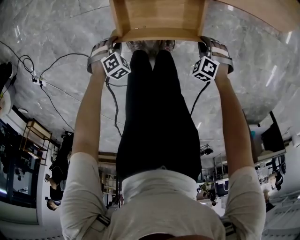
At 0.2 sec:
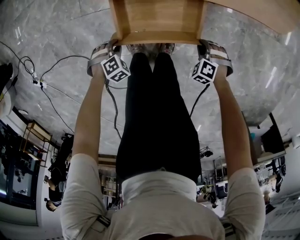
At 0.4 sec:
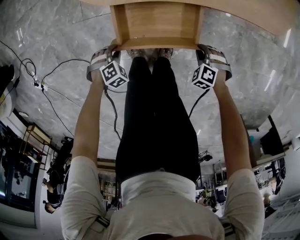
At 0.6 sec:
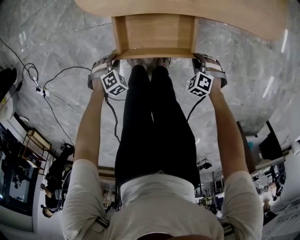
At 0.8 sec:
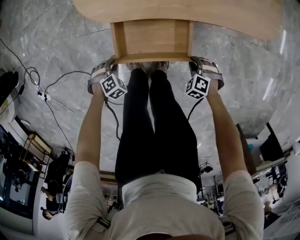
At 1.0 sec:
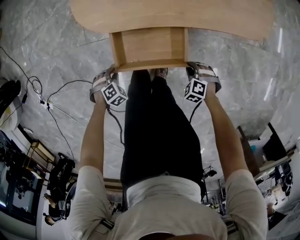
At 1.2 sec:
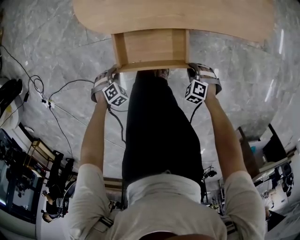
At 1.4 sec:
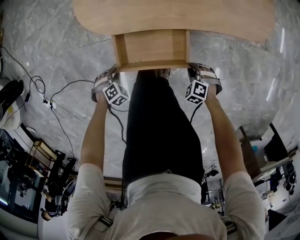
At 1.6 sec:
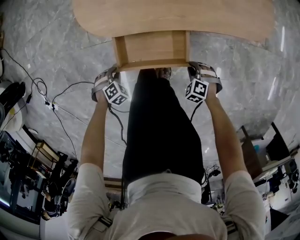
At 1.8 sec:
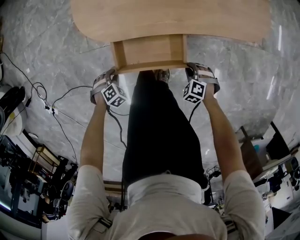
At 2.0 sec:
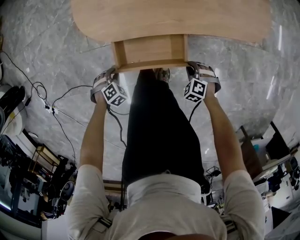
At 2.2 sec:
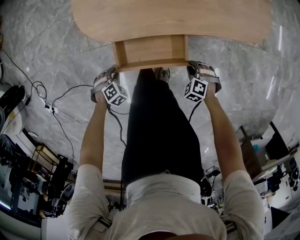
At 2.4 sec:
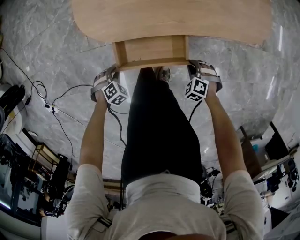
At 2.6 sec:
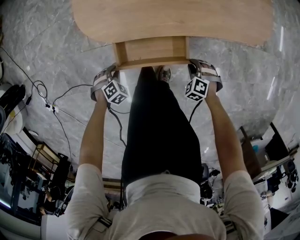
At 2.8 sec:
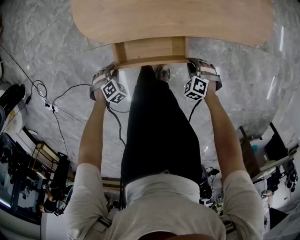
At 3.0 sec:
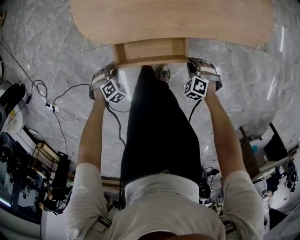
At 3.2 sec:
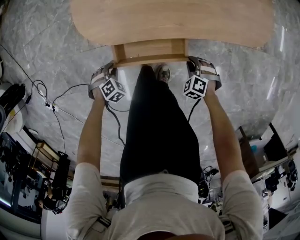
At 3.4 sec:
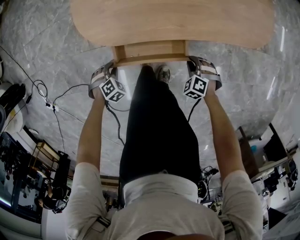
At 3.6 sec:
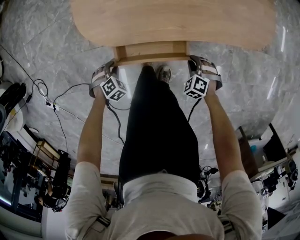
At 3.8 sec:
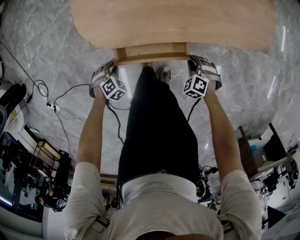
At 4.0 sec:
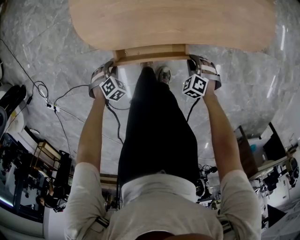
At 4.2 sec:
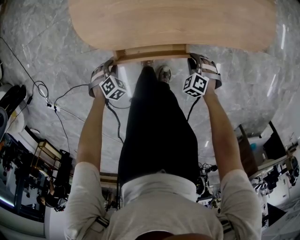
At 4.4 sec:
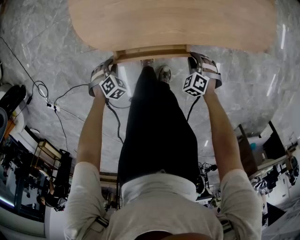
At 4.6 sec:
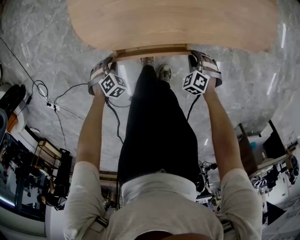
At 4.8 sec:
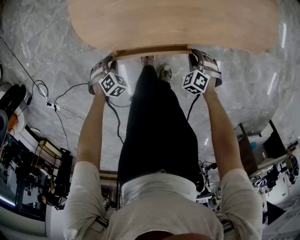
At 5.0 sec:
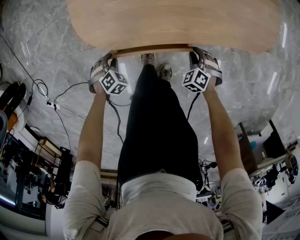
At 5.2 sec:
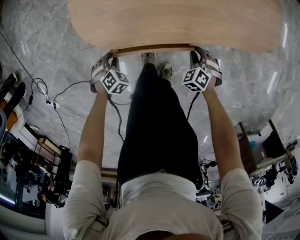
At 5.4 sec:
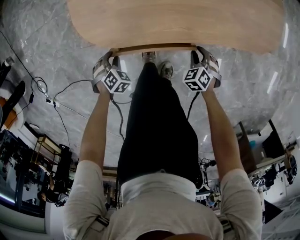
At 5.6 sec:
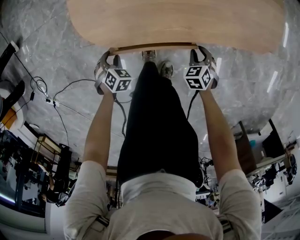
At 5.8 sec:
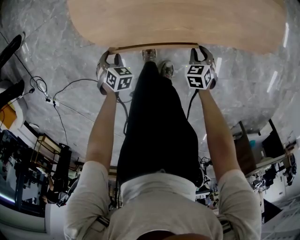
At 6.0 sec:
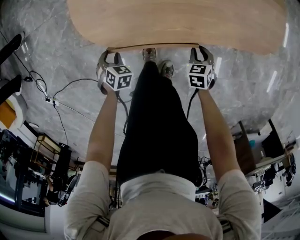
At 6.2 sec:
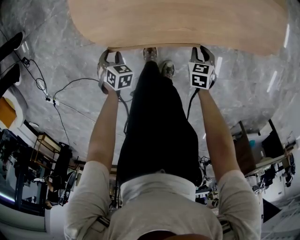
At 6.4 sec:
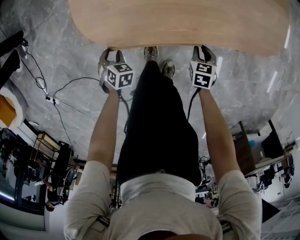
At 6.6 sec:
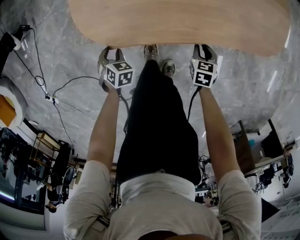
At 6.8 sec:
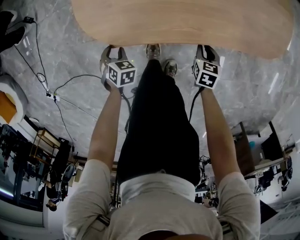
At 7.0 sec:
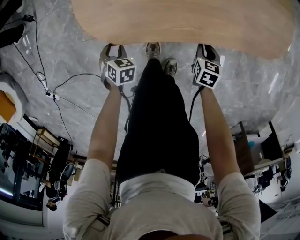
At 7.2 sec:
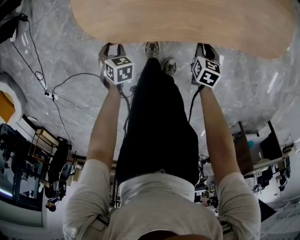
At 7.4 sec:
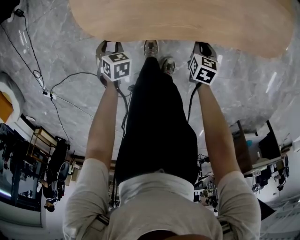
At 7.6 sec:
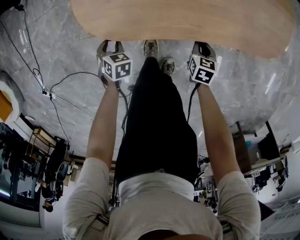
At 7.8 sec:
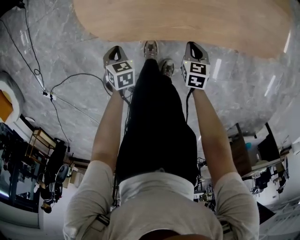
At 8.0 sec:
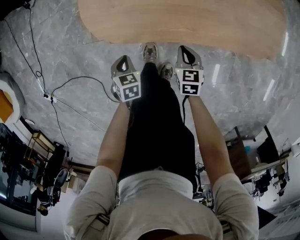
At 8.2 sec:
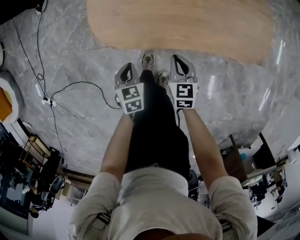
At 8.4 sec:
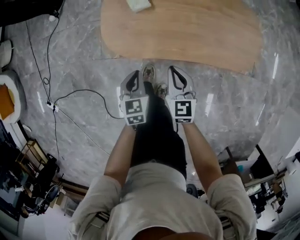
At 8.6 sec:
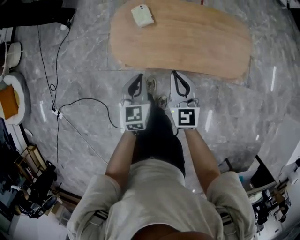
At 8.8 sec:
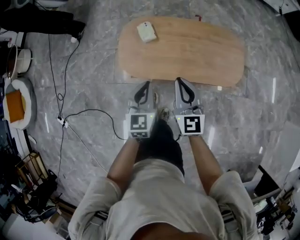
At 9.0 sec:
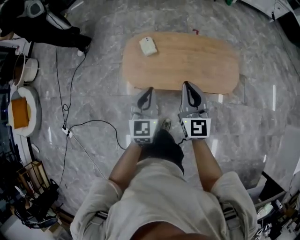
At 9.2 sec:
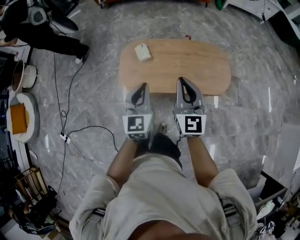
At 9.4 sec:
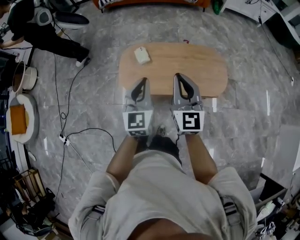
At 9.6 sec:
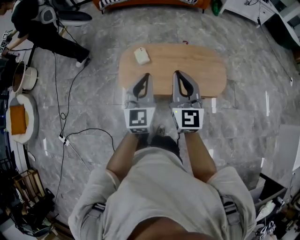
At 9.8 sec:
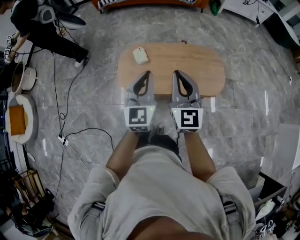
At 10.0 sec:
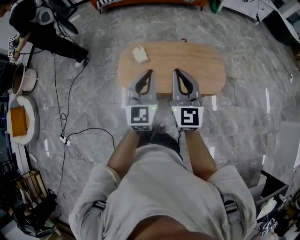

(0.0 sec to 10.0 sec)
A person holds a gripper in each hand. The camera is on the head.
0.0 sec - 1.4 sec: Both grippers travel together upward, approximately 5 cm.
1.4 sec - 2.8 sec: The right gripper shifts by roughly 5 cm; the left gripper moves roughly 5 cm.
2.8 sec - 4.2 sec: The right gripper shifts by about 5 cm; the left gripper moves about 5 cm.
4.2 sec - 5.8 sec: The right gripper twists some 40 degrees clockwise, seen from behind. The left gripper swivels roughly 30 degrees.
5.8 sec - 7.2 sec: The right gripper changes its angle by approximately 30 degrees.
7.2 sec - 8.6 sec: Both grippers travel together upward, approximately 40 cm. The right gripper tilts its fingers some 40 degrees upward, while the left gripper tilts its fingers roughly 40 degrees upward, and closes.
8.6 sec - 10.0 sec: The grippers both shift upward by roughly 30 cm. The left gripper changes its angle by roughly 30 degrees.

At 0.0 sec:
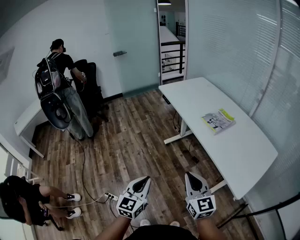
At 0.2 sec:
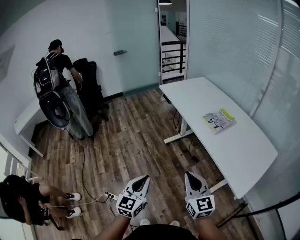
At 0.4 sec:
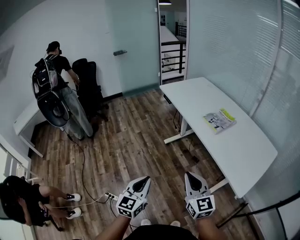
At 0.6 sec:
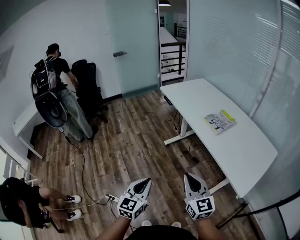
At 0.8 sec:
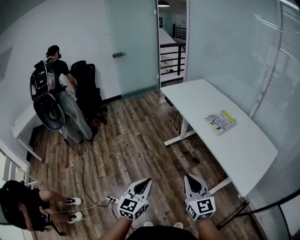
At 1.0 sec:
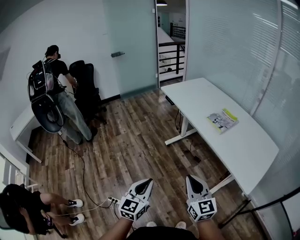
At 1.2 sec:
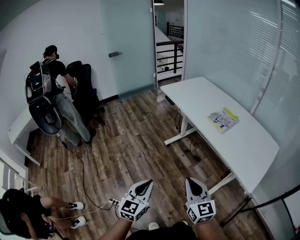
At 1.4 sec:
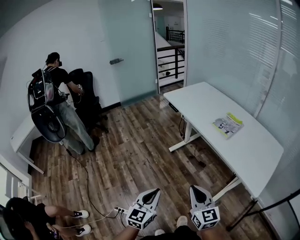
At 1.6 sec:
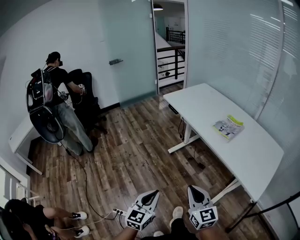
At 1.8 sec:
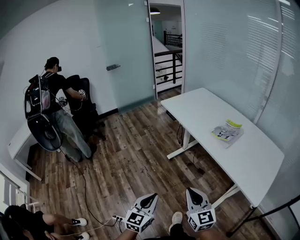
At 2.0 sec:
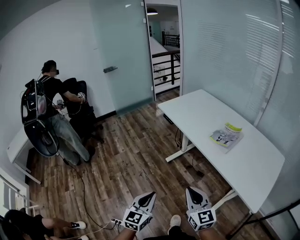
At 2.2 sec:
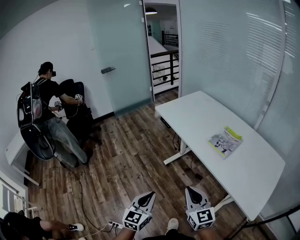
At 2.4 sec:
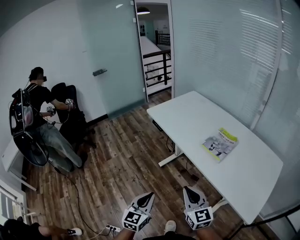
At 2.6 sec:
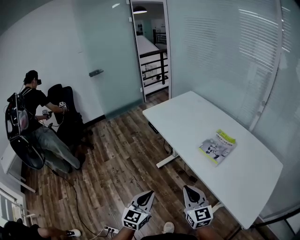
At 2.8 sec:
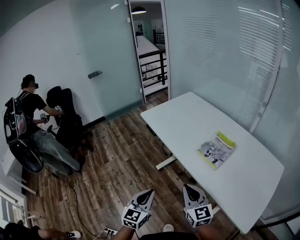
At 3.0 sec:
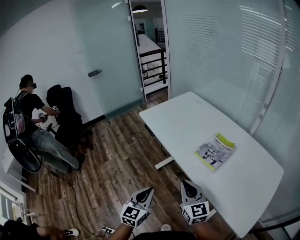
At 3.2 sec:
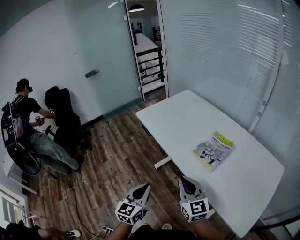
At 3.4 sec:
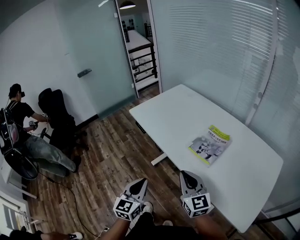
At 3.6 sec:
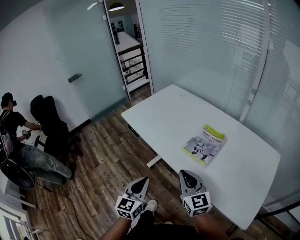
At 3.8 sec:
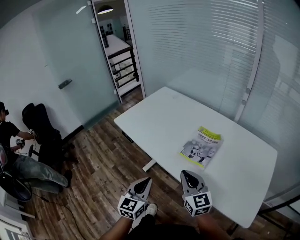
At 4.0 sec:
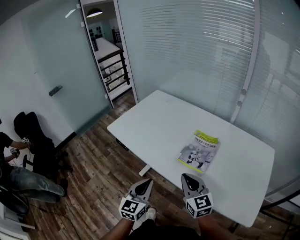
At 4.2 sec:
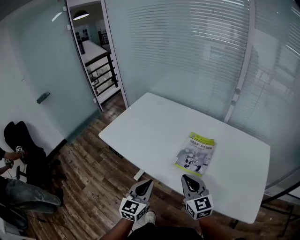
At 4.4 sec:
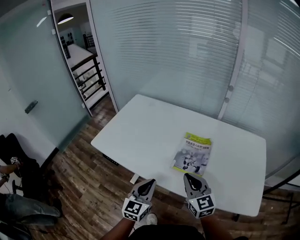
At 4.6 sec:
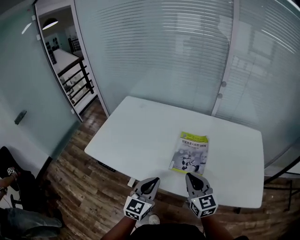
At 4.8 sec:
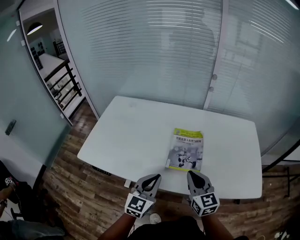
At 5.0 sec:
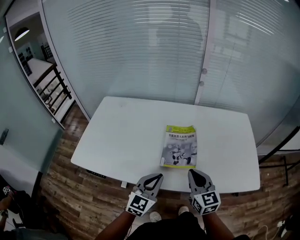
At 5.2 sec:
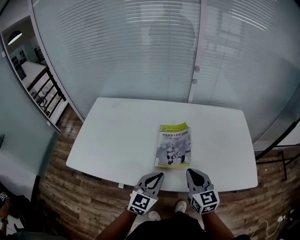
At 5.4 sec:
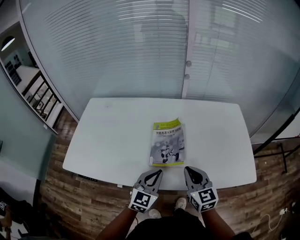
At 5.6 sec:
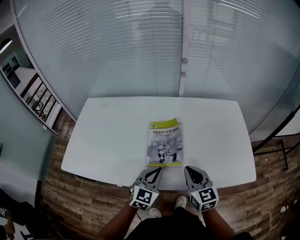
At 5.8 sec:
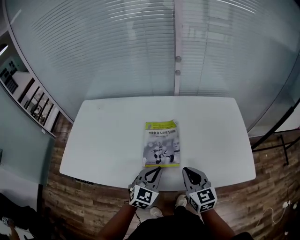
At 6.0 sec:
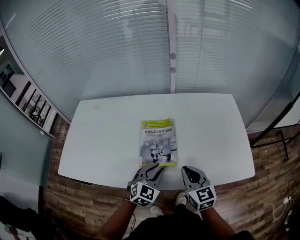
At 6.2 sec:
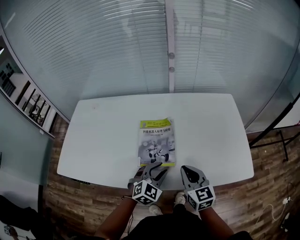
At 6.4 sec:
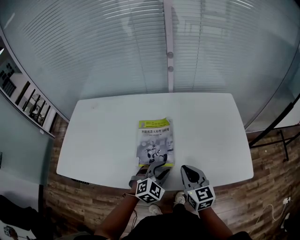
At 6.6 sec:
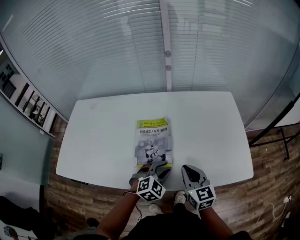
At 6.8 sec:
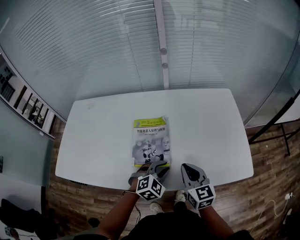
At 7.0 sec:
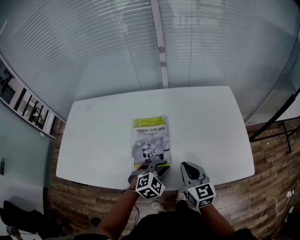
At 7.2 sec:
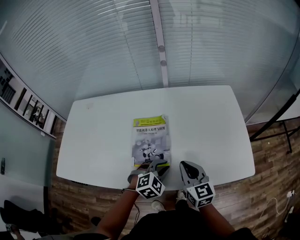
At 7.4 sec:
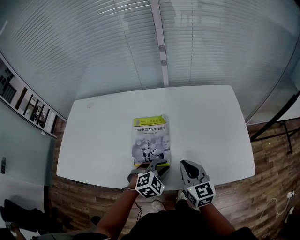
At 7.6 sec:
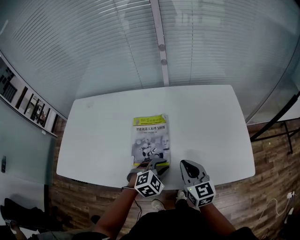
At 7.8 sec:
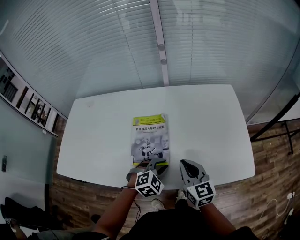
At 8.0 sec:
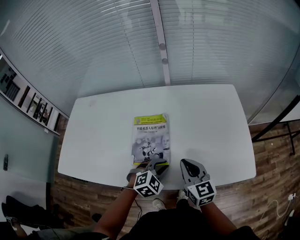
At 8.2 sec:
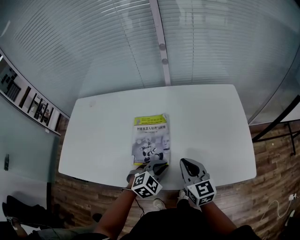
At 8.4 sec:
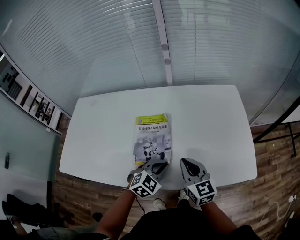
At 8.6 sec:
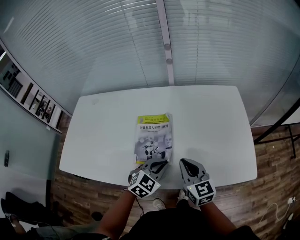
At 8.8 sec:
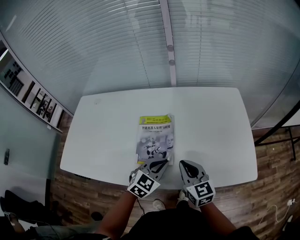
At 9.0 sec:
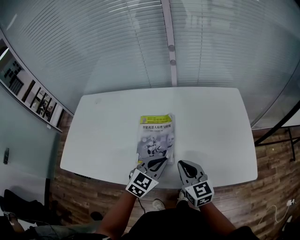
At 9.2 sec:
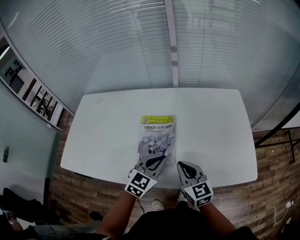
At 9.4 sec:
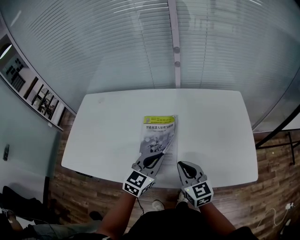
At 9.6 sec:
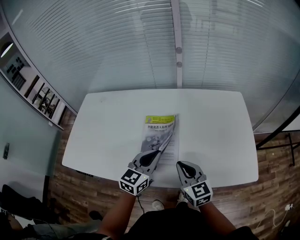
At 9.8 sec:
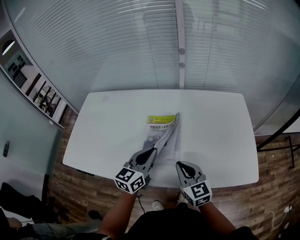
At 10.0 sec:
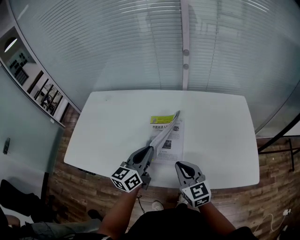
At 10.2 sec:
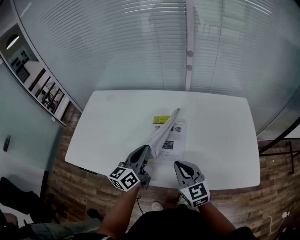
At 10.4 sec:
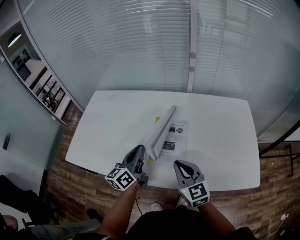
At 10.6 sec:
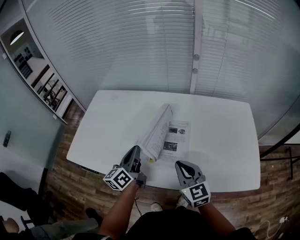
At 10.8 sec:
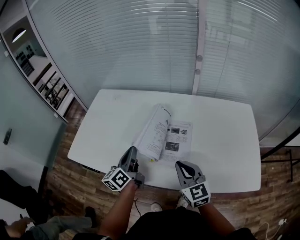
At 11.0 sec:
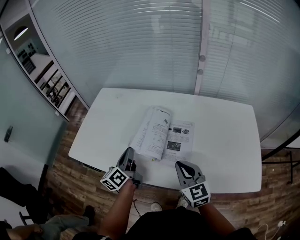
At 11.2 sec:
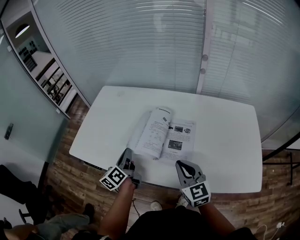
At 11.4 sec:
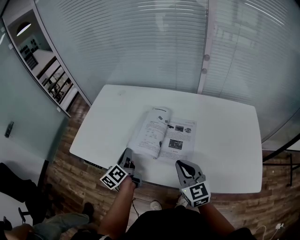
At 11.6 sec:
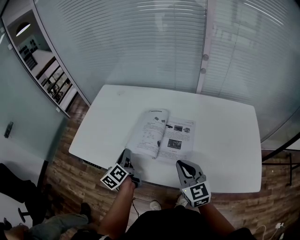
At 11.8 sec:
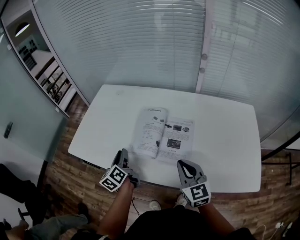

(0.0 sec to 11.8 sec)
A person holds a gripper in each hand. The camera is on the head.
0.0 sec - 1.4 sec: Both grippers move to the left, roughly 10 cm.
1.4 sec - 3.0 sec: Both grippers move forward, approximately 25 cm.
3.0 sec - 4.4 sec: The right gripper shifts by some 15 cm, and changes its angle by some 30 degrees. The left gripper changes place by about 25 cm, and rotates some 30 degrees.
4.4 sec - 6.0 sec: The left gripper changes place by about 20 cm, changes its angle by some 50 degrees, and opens; the right gripper ends up roughly 10 cm from where it was, and rotates approximately 30 degrees.
6.0 sec - 7.4 sec: The left gripper is displaced to the right by roughly 5 cm, and rotates roughly 30 degrees.
7.4 sec - 8.8 sec: The left gripper ends up approximately 5 cm from where it was, changes its angle by roughly 30 degrees, and closes.
8.8 sec - 10.4 sec: The right gripper heads to the left, covering some 10 cm. The left gripper goes roughly 20 cm to the left, and tilts its fingers roughly 30 degrees upward.
10.4 sec - 11.8 sec: The left gripper goes about 15 cm to the left and downward, changes its angle by about 30 degrees, and opens up.

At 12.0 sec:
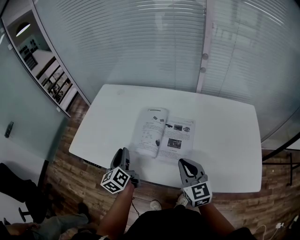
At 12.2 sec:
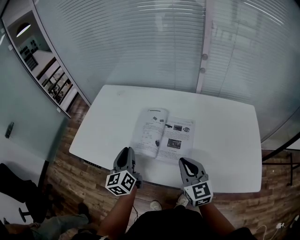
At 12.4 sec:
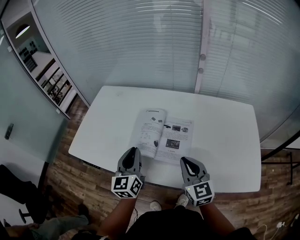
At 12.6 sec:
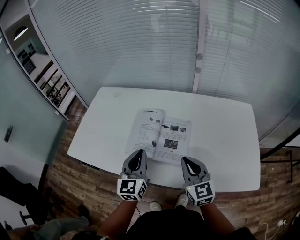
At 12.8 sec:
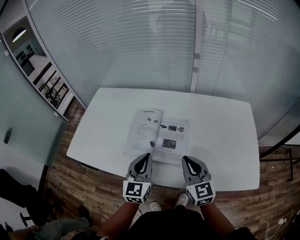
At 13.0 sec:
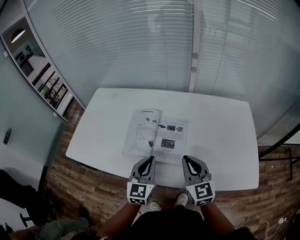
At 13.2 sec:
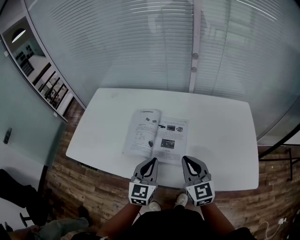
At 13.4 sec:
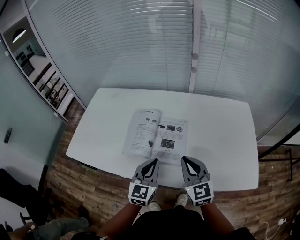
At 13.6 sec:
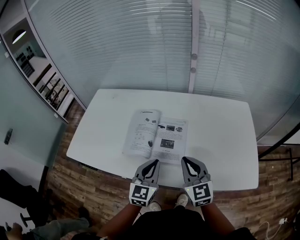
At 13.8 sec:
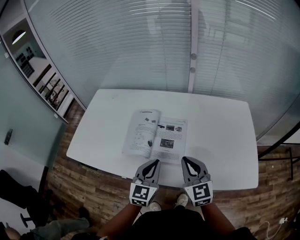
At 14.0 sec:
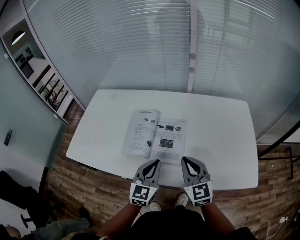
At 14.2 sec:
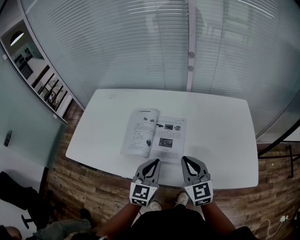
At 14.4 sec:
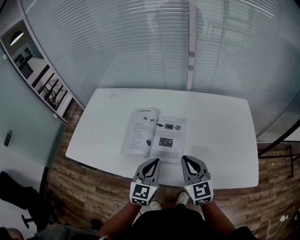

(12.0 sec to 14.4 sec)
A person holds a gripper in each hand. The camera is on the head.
12.0 sec - 13.2 sec: The left gripper travels to the right by roughly 20 cm, swivels roughly 50 degrees, and closes.
13.2 sec - 14.4 sec: There are only small adjustments of the grippers.
